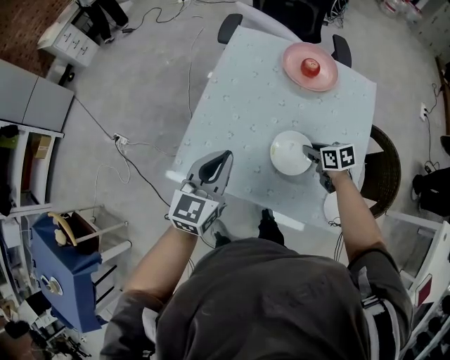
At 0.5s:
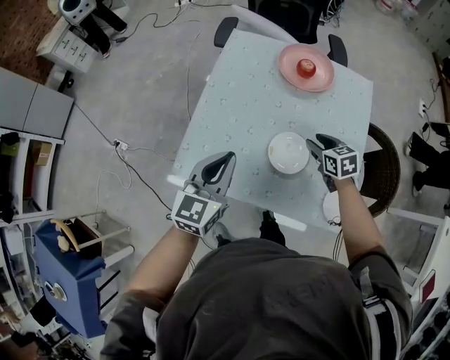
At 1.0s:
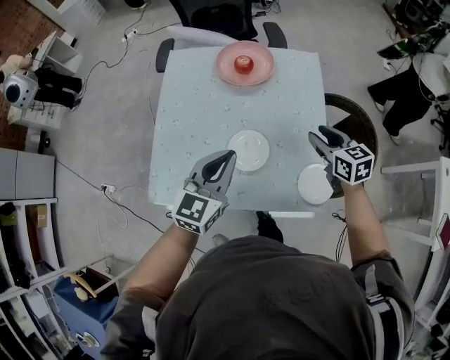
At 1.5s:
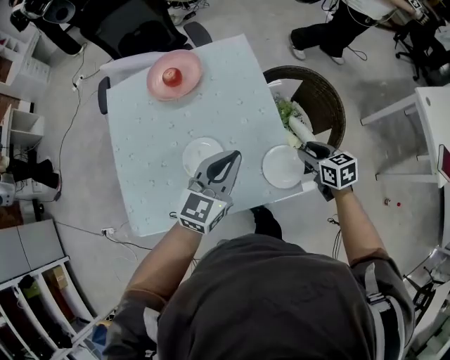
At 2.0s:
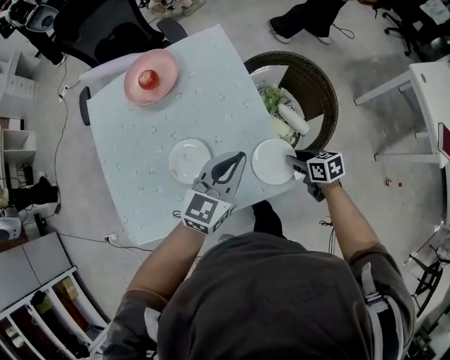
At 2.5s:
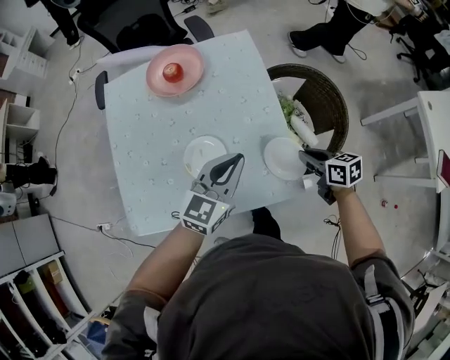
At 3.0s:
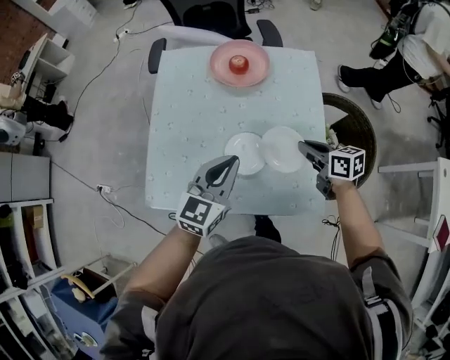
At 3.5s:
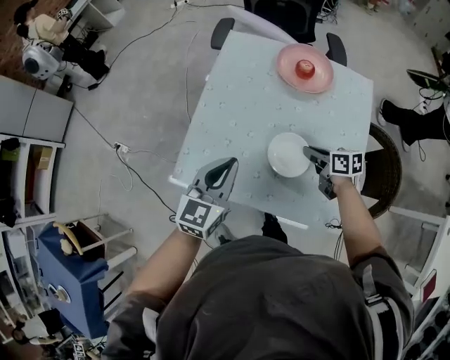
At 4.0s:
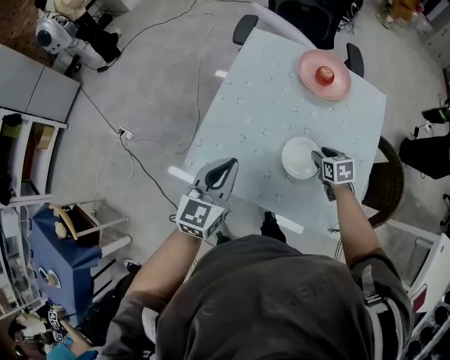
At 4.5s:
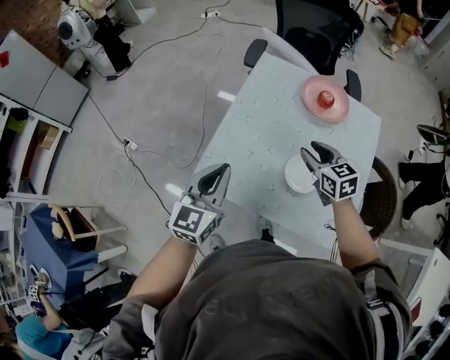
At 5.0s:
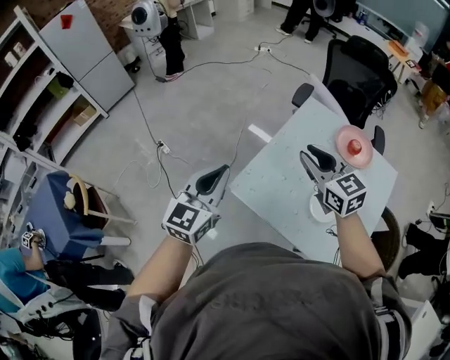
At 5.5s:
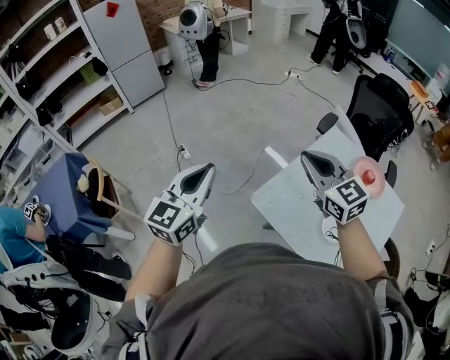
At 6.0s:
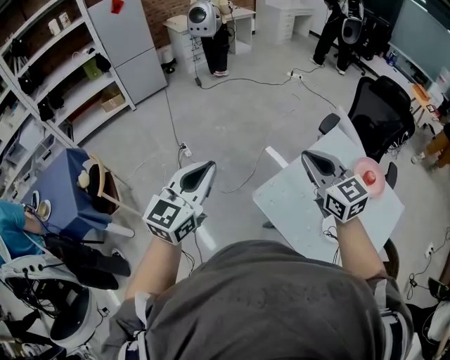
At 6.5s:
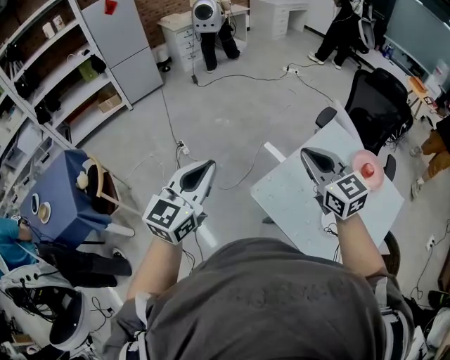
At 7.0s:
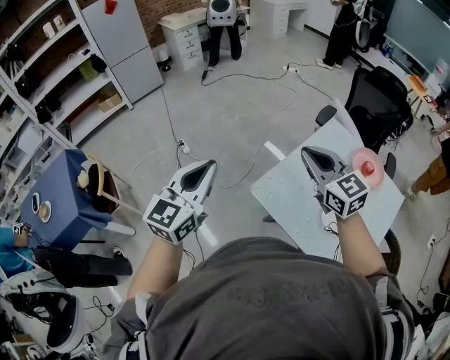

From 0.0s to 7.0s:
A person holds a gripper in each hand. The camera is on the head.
From 0.0s to 2.0s: The right gripper reaches approximately 15 cm upward, then returns, and rotates roughly 40 degrees. Meanwhile the left gripper changes place by roughly 35 cm, and swivels some 50 degrees.
From 2.0s to 3.5s: The right gripper ends up some 35 cm from where it was, changes its angle by roughly 30 degrees, and closes its fingers. The left gripper changes place by about 35 cm, and changes its angle by some 40 degrees.
From 3.5s to 5.0s: The right gripper goes some 40 cm upward and to the left, rotates around the line of its fingers by approximately 50 degrees, counterclockwise from behind, and opens its fingers, while the left gripper is displaced to the left and upward by about 25 cm, and changes its angle by roughly 20 degrees.
From 5.0s to 7.0s: The grippers both shift to the left and upward by some 15 cm. The right gripper closes its fingers.

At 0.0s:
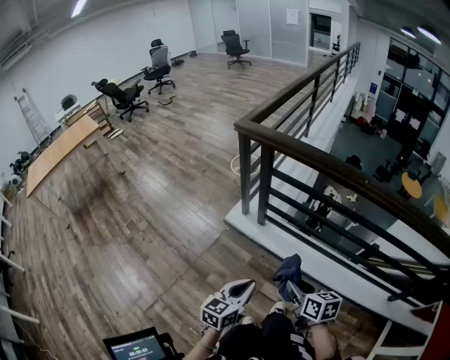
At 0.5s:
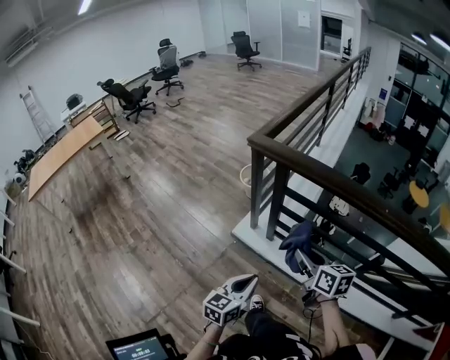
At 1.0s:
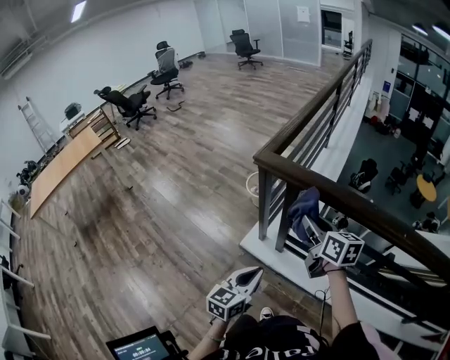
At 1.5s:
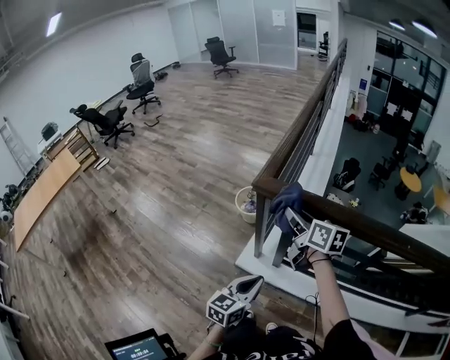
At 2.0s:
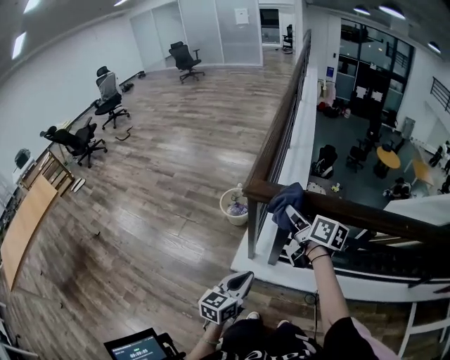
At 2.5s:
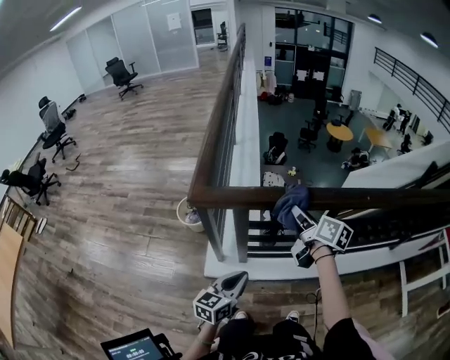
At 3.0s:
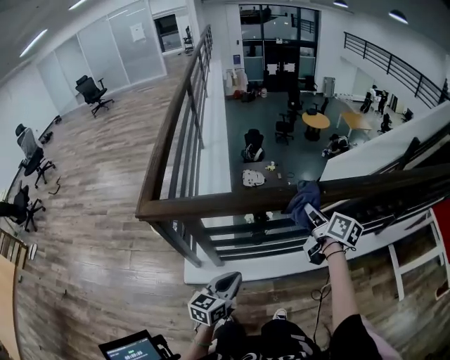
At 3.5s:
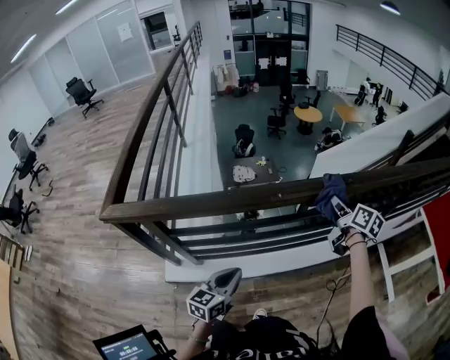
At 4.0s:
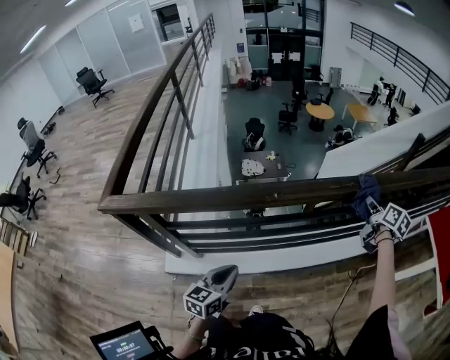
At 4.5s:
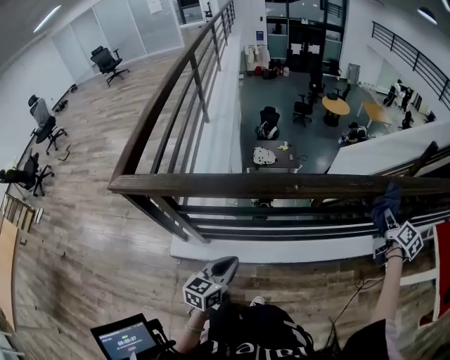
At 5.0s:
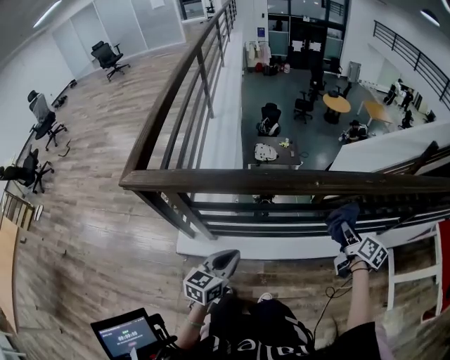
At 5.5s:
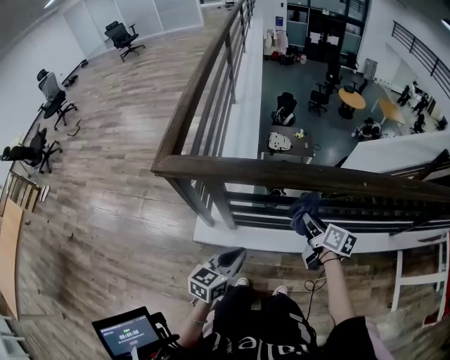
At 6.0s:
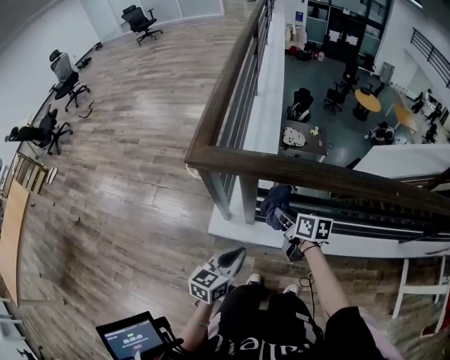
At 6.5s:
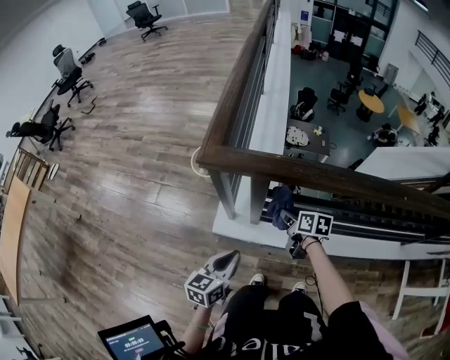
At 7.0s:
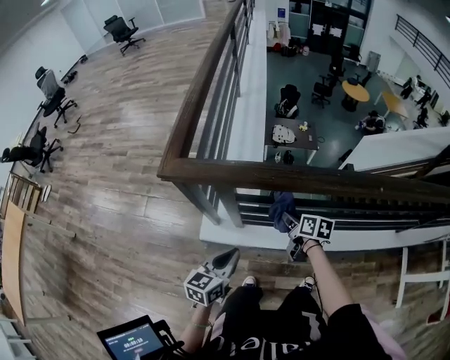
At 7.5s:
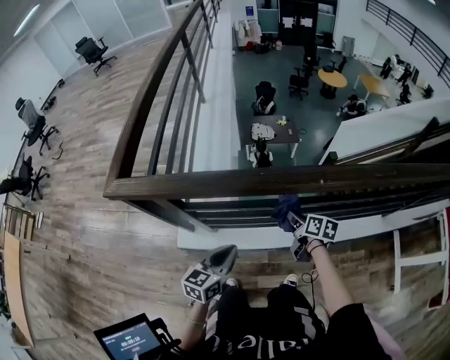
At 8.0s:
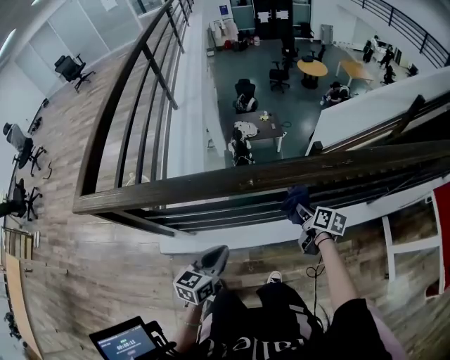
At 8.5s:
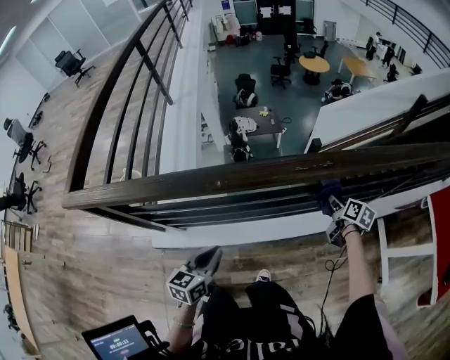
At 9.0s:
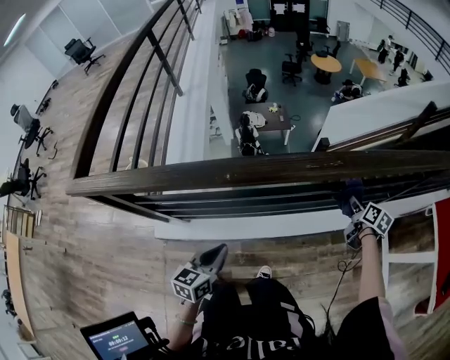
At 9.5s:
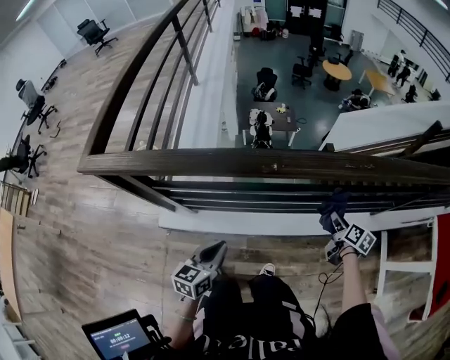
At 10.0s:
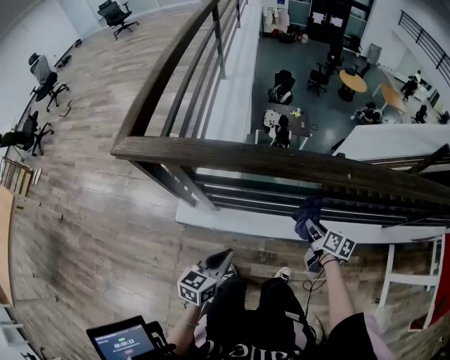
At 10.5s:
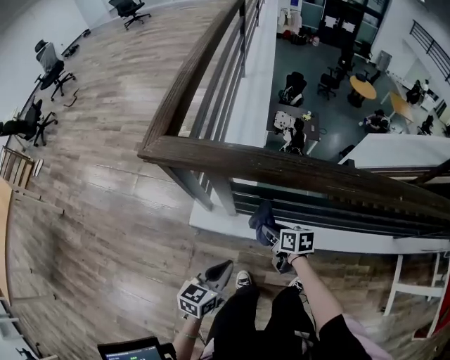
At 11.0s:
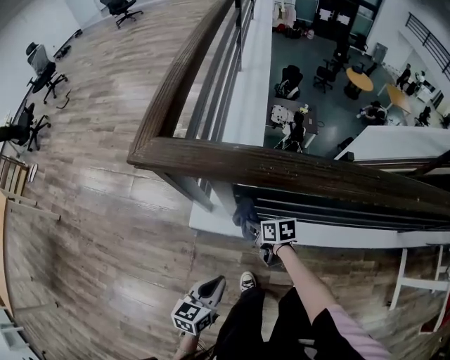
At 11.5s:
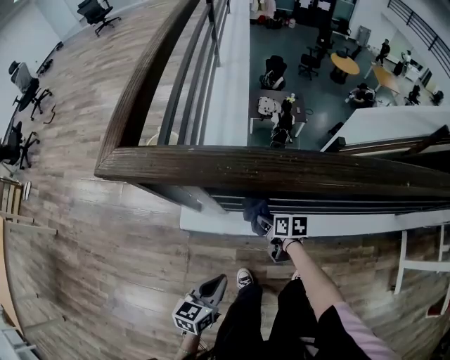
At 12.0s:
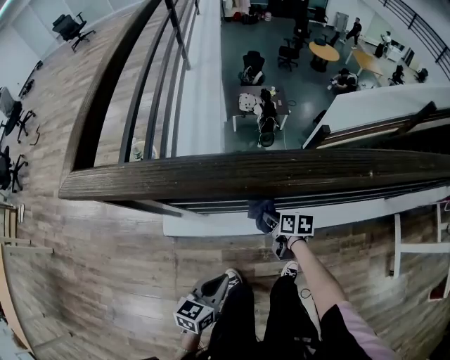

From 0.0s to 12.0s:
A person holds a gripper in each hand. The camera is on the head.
From 0.0s to 2.0s: The two grippers travel together, forward and to the left, roughly 60 cm. The right gripper turns by about 30 degrees.
From 2.0s to 4.0s: The two grippers travel together, roughly 70 cm. The left gripper rotates roughly 20 degrees; the right gripper turns by approximately 50 degrees.
From 4.0s to 6.0s: The left gripper ends up some 35 cm from where it was, while the right gripper moves roughly 80 cm, and swivels about 50 degrees.
From 6.0s to 8.0s: The pair of grippers is taken to the right, about 50 cm. The right gripper swivels about 30 degrees.
From 8.0s to 10.0s: The two grippers go about 20 cm to the left and backward.
From 10.0s to 12.0s: The right gripper heads downward and forward, covering roughly 20 cm, and moves some 40 cm to the left and comes back, while the left gripper heads downward, covering approximately 10 cm, and goes to the left and returns, about 20 cm each way.

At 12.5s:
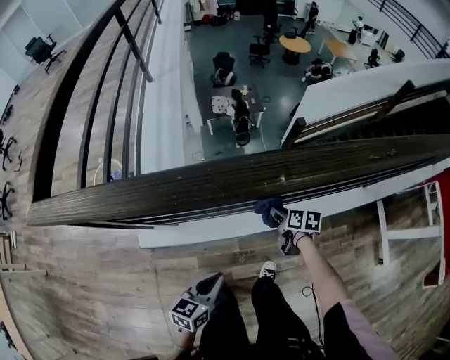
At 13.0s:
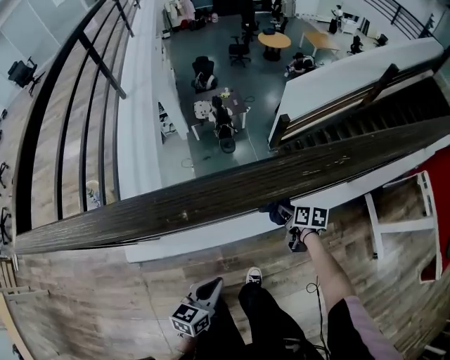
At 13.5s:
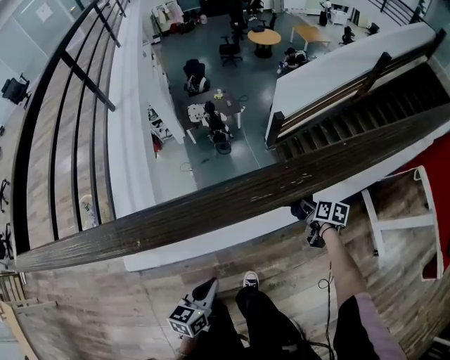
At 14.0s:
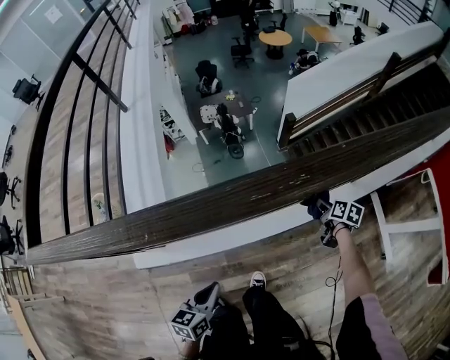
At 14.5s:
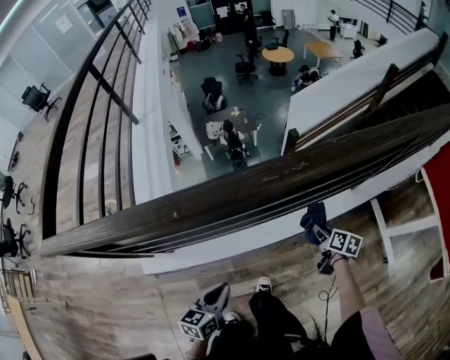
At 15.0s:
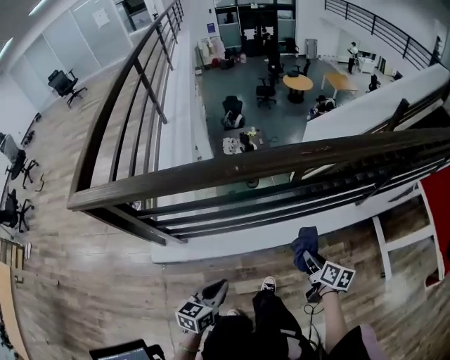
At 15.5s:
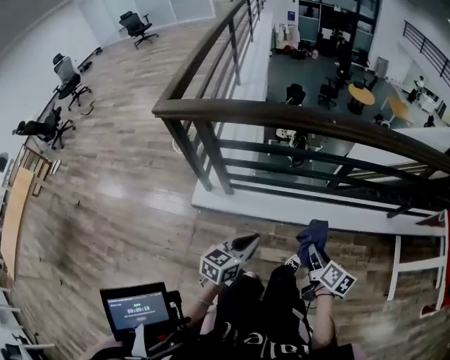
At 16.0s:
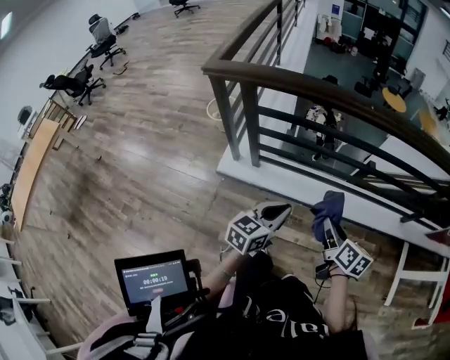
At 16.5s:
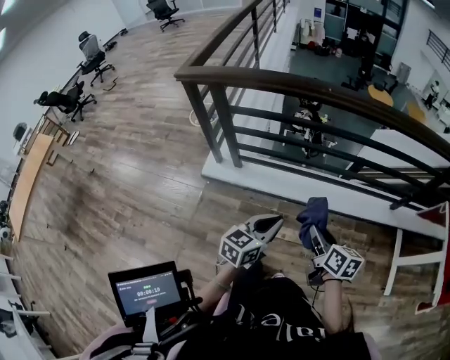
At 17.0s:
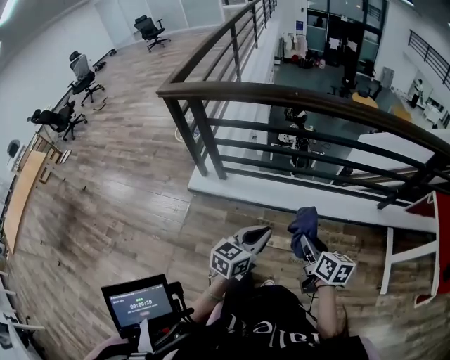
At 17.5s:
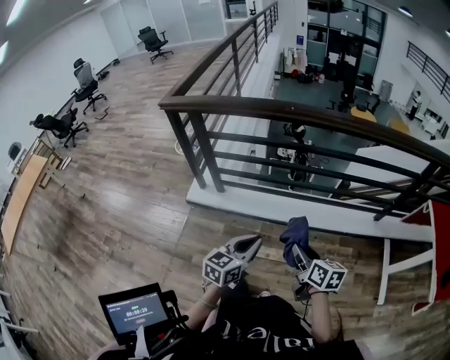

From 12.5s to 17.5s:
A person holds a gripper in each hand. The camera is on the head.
From 12.5s to 15.0s: The left gripper is displaced backward, upward and to the right by approximately 15 cm, while the right gripper heads backward, to the right and upward, covering about 35 cm.
From 15.0s to 17.5s: The two grippers go about 30 cm backward and upward. The right gripper rotates roughly 30 degrees.

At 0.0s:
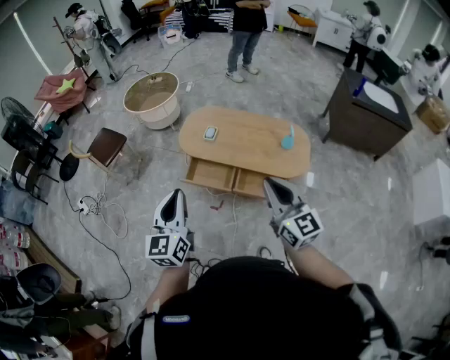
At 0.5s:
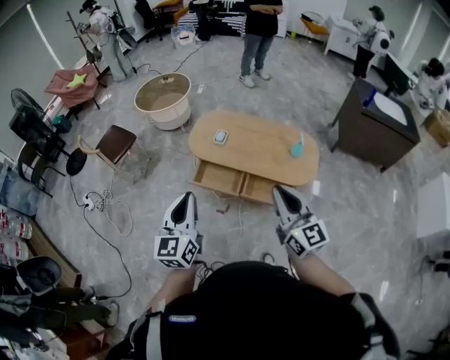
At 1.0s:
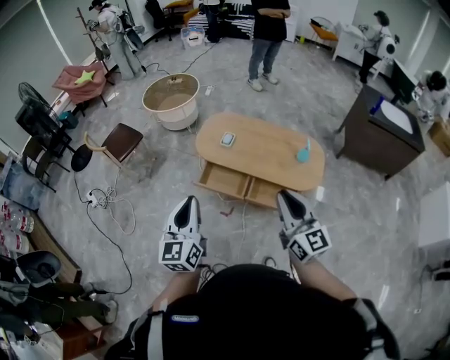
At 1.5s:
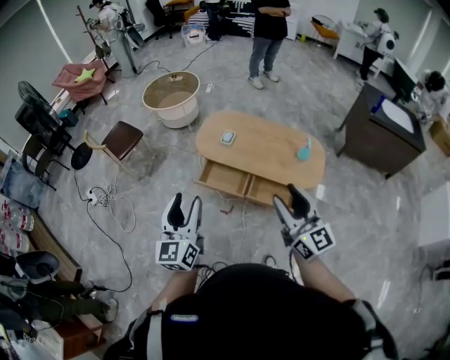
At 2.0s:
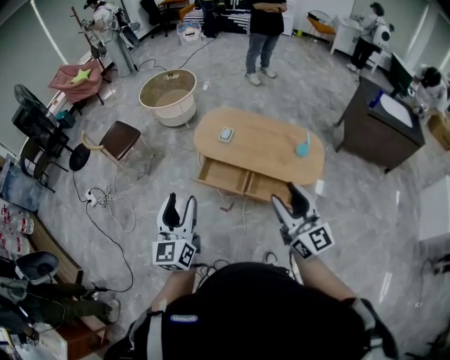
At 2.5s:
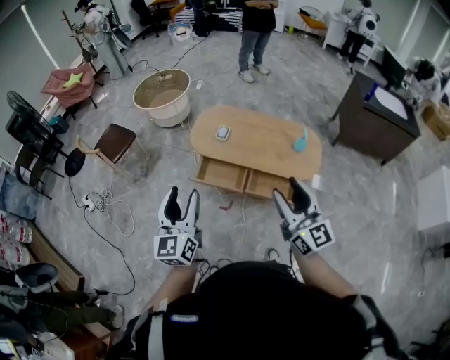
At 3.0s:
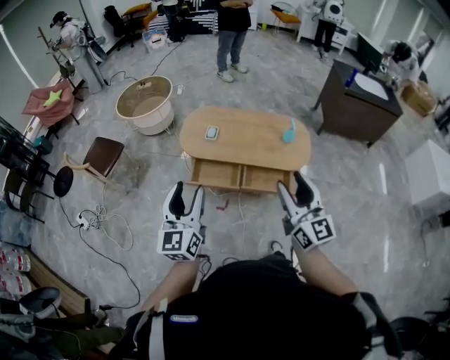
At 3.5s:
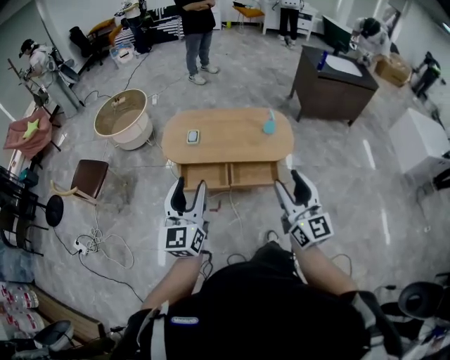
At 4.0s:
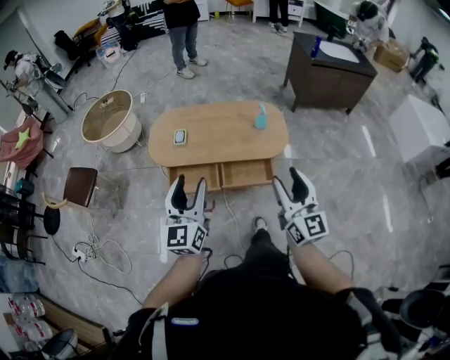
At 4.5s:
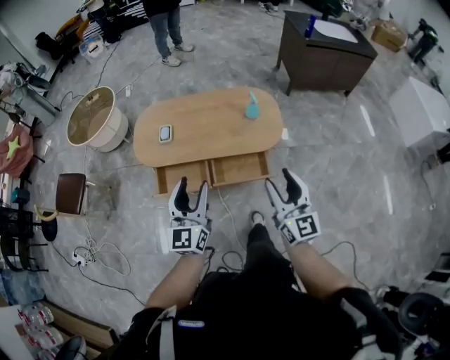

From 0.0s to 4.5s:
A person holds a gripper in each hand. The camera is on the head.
From 0.0s to 2.0s: The right gripper opens up. The left gripper opens.
From 2.0s to 4.5s: The right gripper travels downward by about 15 cm, and turns by roughly 30 degrees. The left gripper shifts by approximately 25 cm, and changes its angle by about 30 degrees.
